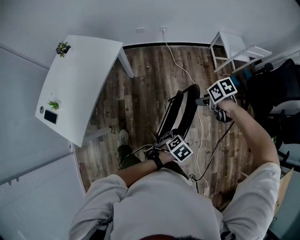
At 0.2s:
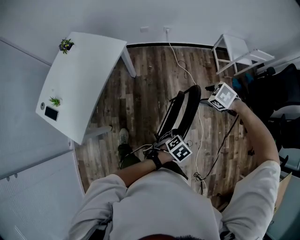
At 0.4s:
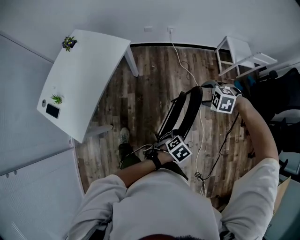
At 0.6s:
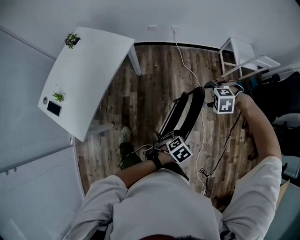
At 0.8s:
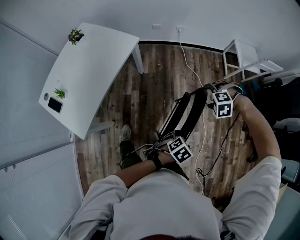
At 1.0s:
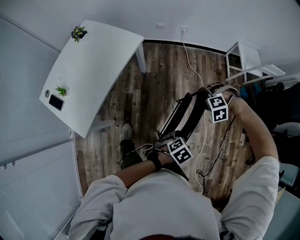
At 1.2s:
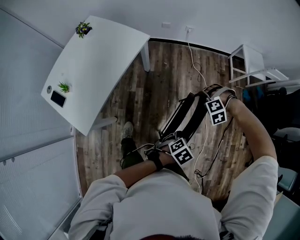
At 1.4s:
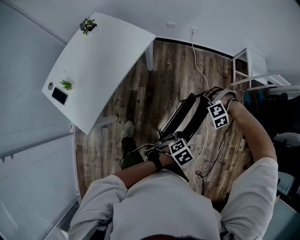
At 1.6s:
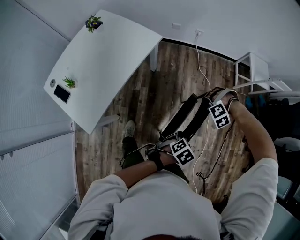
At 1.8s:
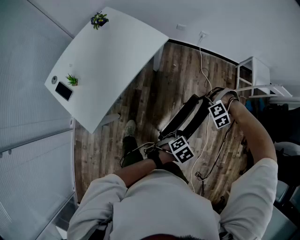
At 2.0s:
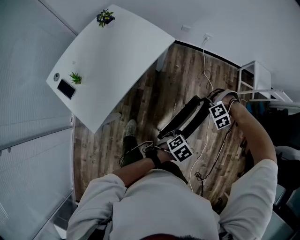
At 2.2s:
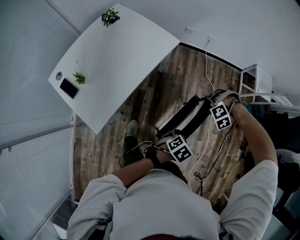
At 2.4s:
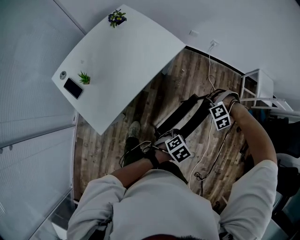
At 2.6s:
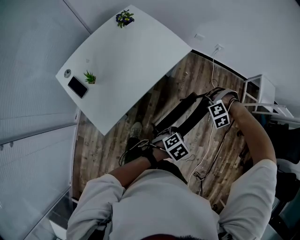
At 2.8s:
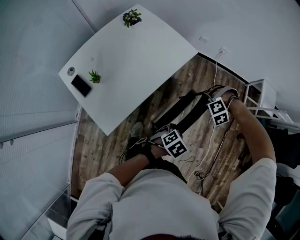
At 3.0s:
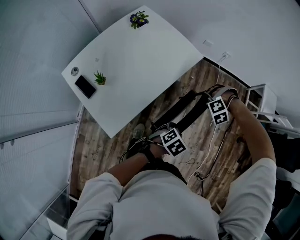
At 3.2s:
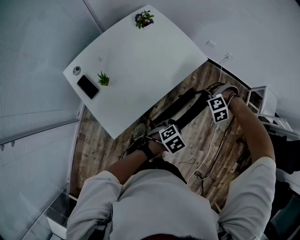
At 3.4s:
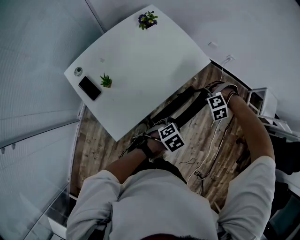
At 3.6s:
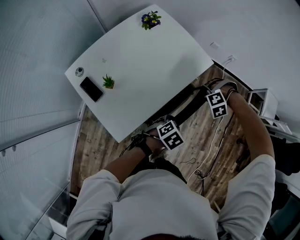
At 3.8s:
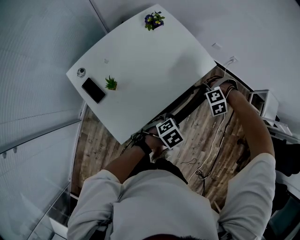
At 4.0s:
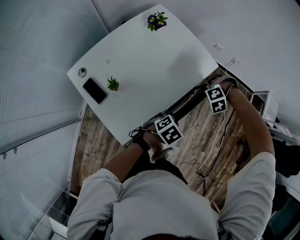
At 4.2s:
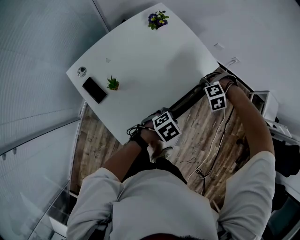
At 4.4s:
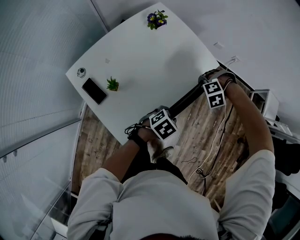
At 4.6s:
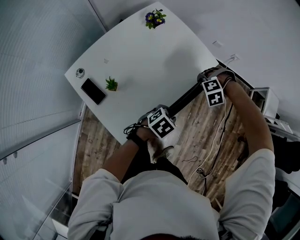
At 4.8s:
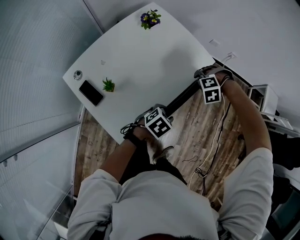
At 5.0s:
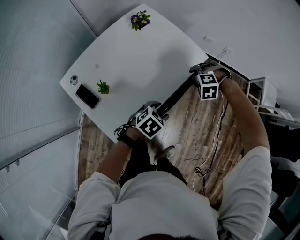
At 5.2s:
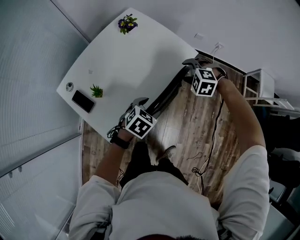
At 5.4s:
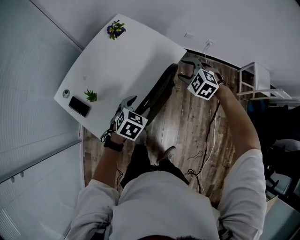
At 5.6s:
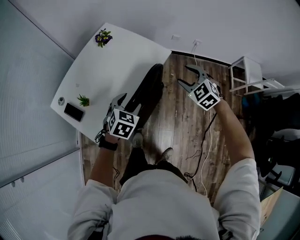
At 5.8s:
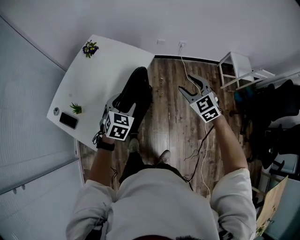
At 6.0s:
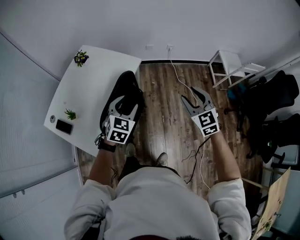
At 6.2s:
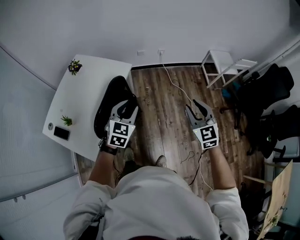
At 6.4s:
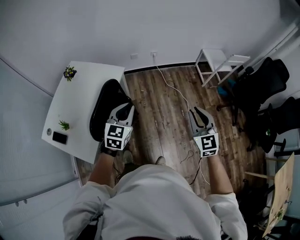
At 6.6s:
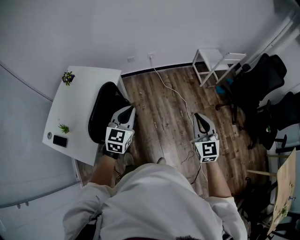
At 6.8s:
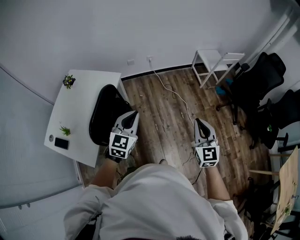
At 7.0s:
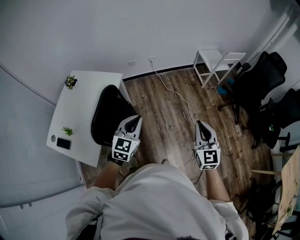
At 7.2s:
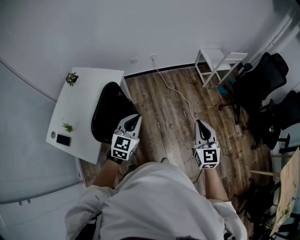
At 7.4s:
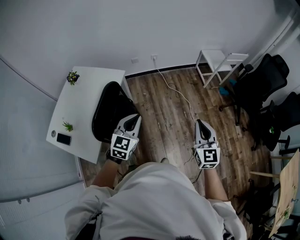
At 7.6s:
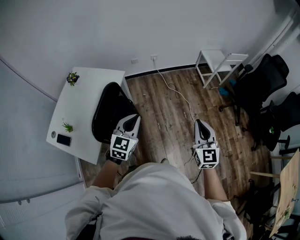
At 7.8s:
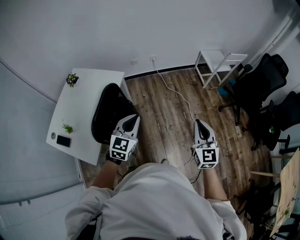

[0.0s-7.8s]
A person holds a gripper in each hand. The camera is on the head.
0.0s to 1.6s: The left gripper shifts by some 15 cm. The right gripper moves roughly 15 cm, twists approximately 120 degrees counterclockwise, seen from behind, and closes its fingers.
1.6s to 3.2s: The right gripper changes place by about 30 cm, while the left gripper shifts by roughly 30 cm.
3.2s to 4.6s: The left gripper changes place by about 15 cm, while the right gripper shifts by approximately 15 cm.
4.6s to 6.2s: The left gripper goes approximately 20 cm upward, and tilts its fingers approximately 30 degrees upward. Meanwhile the right gripper ends up about 50 cm from where it was, and tips its fingers upward by about 70 degrees.
6.2s to 7.8s: Both grippers travel together to the right and backward, roughly 15 cm. The right gripper turns by some 20 degrees.

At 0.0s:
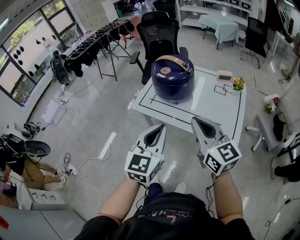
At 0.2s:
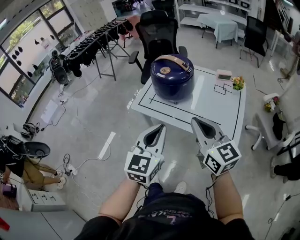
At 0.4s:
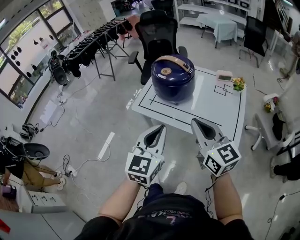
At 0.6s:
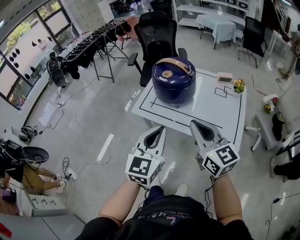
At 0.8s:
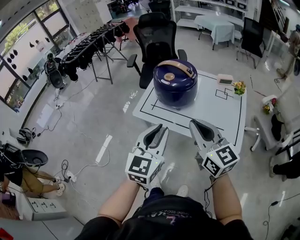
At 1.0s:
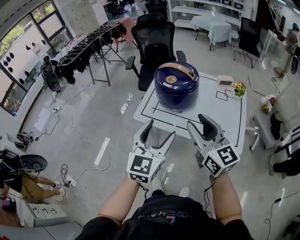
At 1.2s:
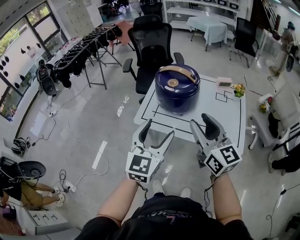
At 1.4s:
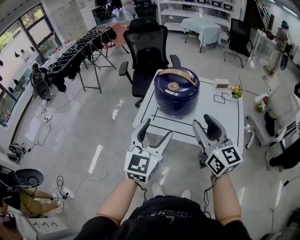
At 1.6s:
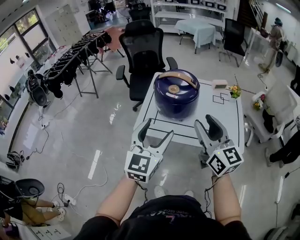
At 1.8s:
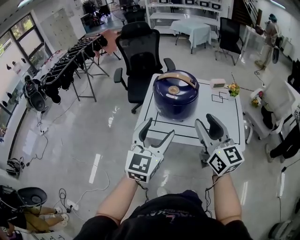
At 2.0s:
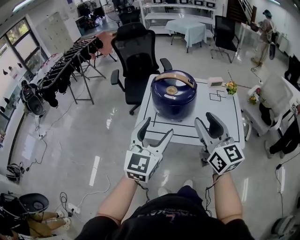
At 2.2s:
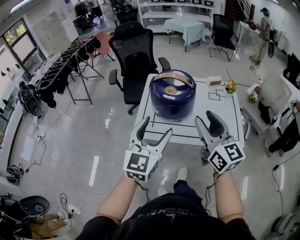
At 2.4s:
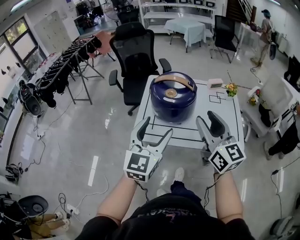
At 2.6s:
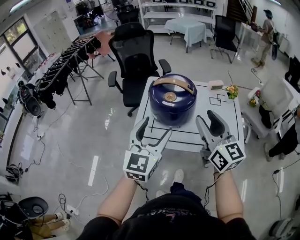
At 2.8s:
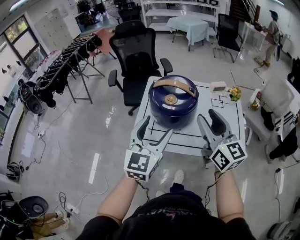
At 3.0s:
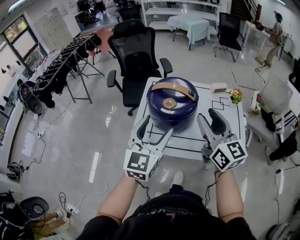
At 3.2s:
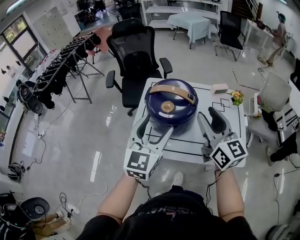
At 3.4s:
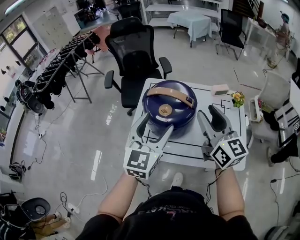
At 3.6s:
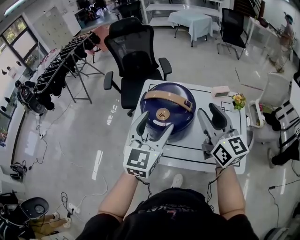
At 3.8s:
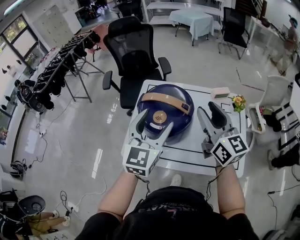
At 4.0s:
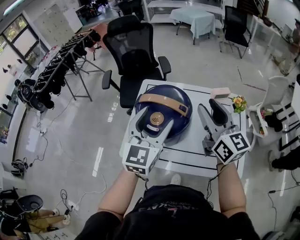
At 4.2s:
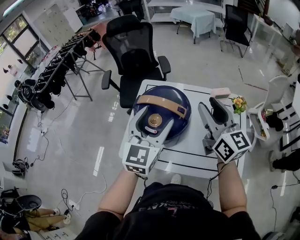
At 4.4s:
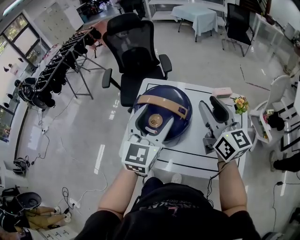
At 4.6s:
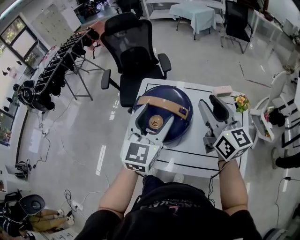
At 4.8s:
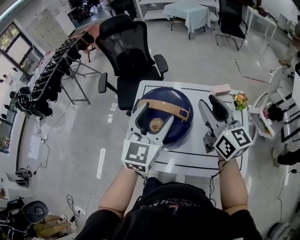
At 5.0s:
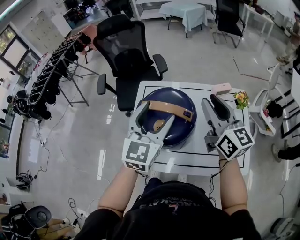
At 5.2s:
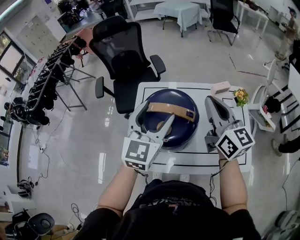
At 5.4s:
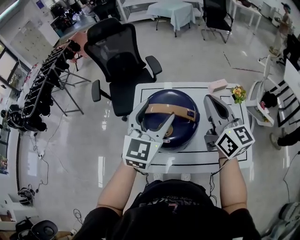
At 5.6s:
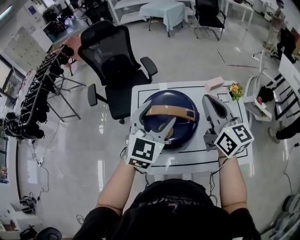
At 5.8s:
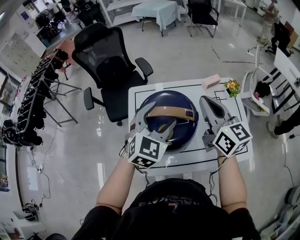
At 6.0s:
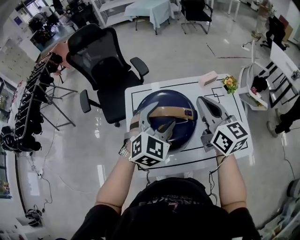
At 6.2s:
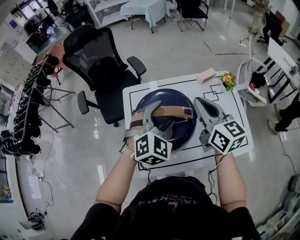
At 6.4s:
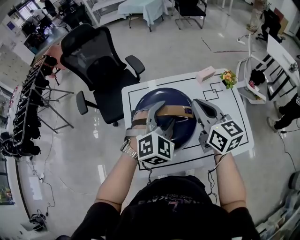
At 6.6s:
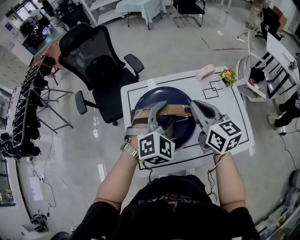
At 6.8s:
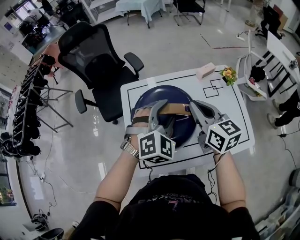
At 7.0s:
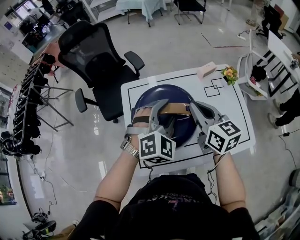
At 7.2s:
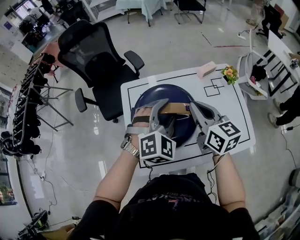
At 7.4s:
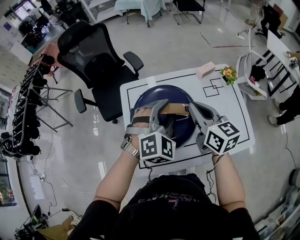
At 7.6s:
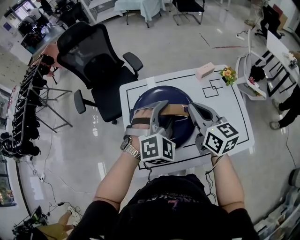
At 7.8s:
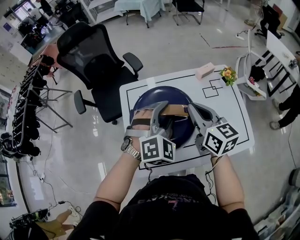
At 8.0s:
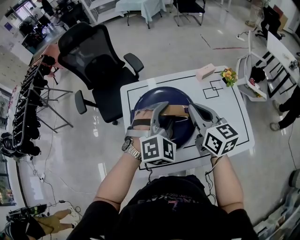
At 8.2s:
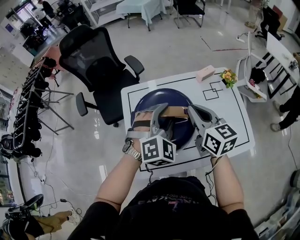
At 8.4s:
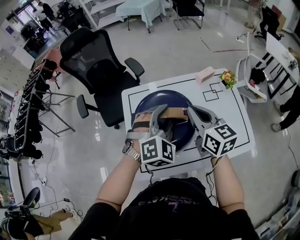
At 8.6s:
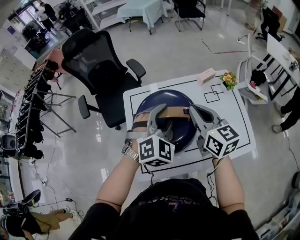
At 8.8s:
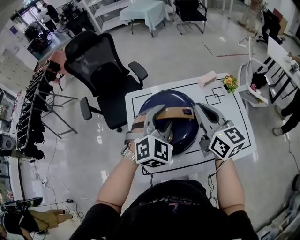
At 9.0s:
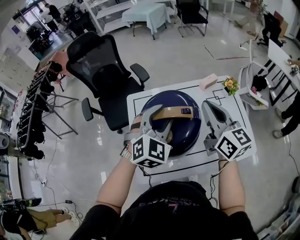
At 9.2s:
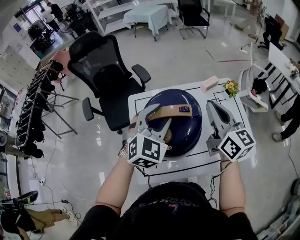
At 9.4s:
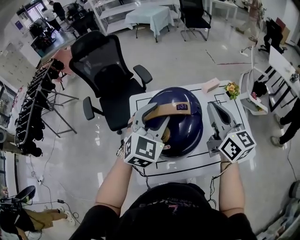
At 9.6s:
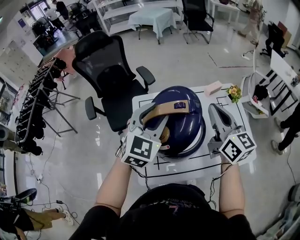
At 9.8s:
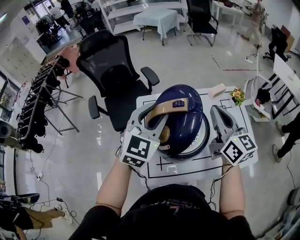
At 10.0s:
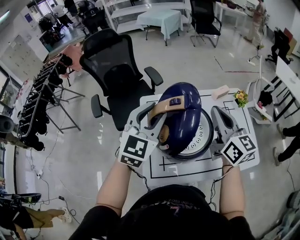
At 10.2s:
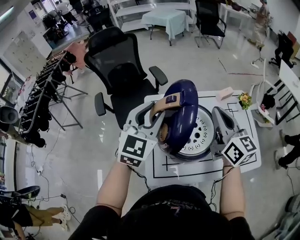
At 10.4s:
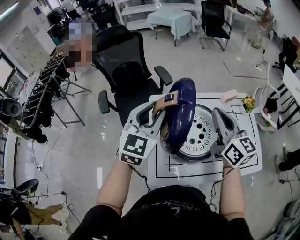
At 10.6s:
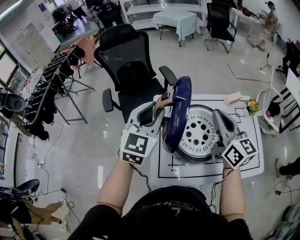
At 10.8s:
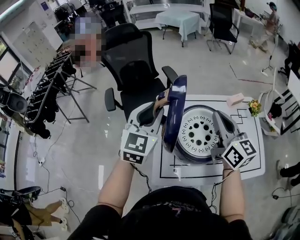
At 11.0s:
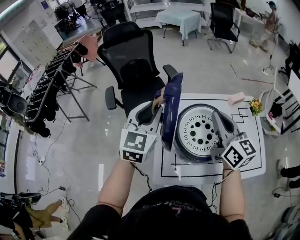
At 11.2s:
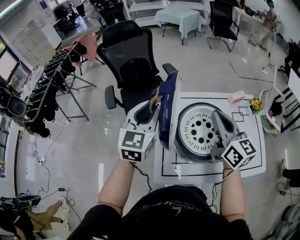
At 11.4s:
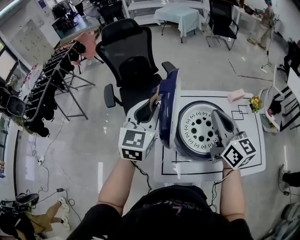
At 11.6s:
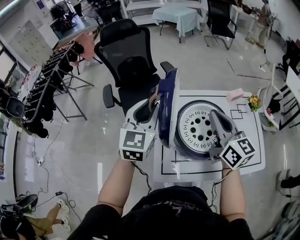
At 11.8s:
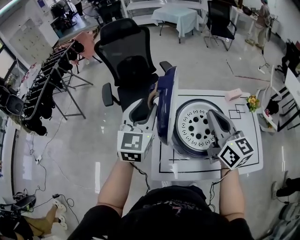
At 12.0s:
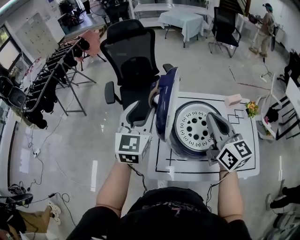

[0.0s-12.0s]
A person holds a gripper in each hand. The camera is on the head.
0.0s to 1.6s: The two grippers go about 15 cm forward and to the left. The right gripper opens its fingers. The left gripper opens up.
1.6s to 3.0s: The grippers both shift forward by roughly 15 cm.
3.0s to 4.4s: The grippers both shift forward and to the right by some 15 cm.
4.4s to 6.0s: The left gripper shifts approximately 10 cm downward and forward, and changes its angle by about 40 degrees; the right gripper ends up roughly 5 cm from where it was, and closes.
6.0s to 7.6s: The left gripper rotates some 20 degrees, and closes up. The right gripper goes roughly 5 cm downward.
7.6s to 9.0s: The right gripper travels upward by some 5 cm. The left gripper moves about 5 cm.
9.0s to 10.4s: The left gripper shifts about 15 cm to the left, and turns by some 30 degrees. Meanwhile the right gripper moves to the left, roughly 10 cm.
10.4s to 12.0s: The left gripper heads to the left, covering approximately 10 cm. The right gripper goes about 5 cm to the left.

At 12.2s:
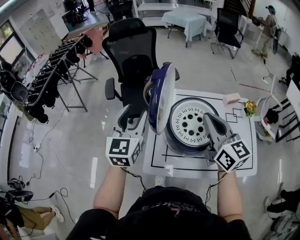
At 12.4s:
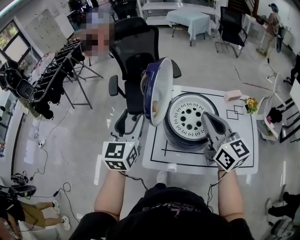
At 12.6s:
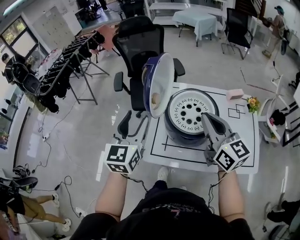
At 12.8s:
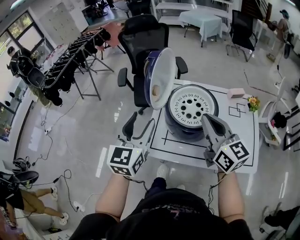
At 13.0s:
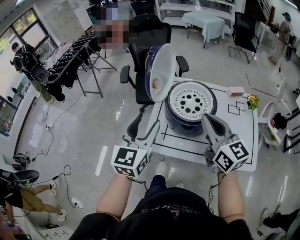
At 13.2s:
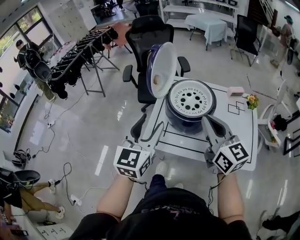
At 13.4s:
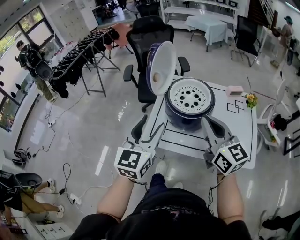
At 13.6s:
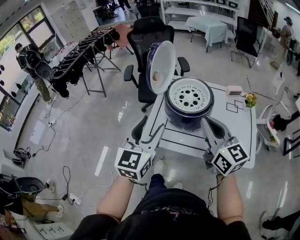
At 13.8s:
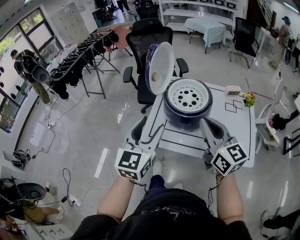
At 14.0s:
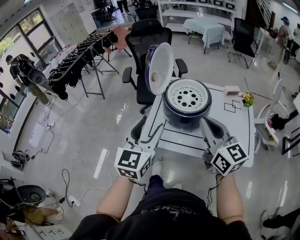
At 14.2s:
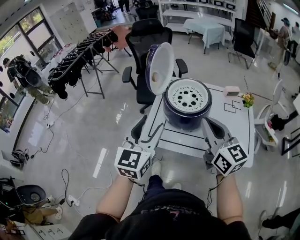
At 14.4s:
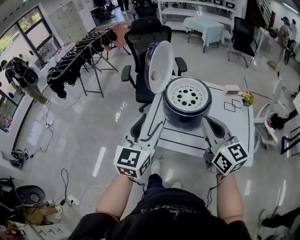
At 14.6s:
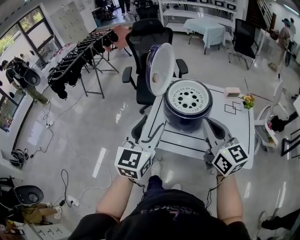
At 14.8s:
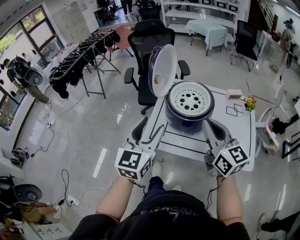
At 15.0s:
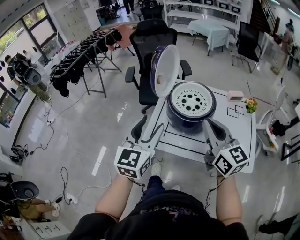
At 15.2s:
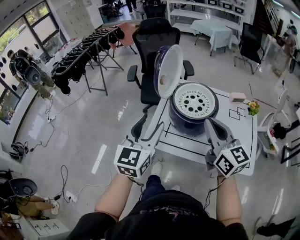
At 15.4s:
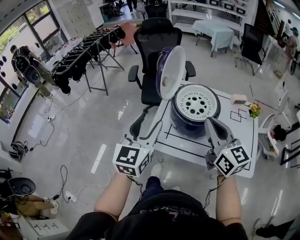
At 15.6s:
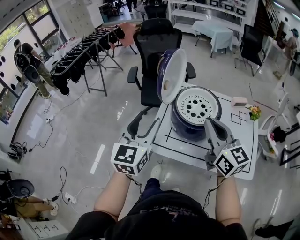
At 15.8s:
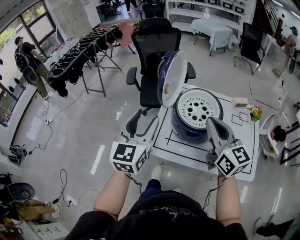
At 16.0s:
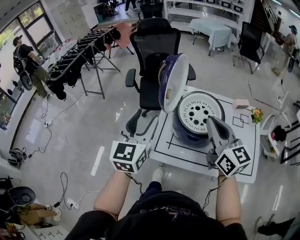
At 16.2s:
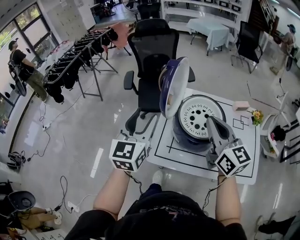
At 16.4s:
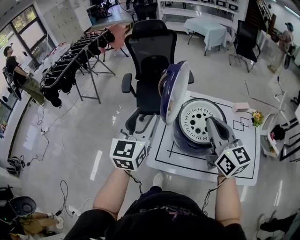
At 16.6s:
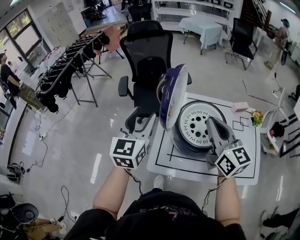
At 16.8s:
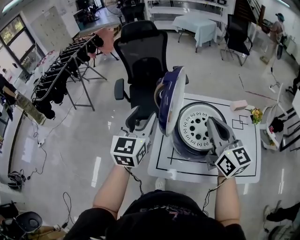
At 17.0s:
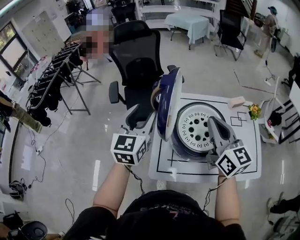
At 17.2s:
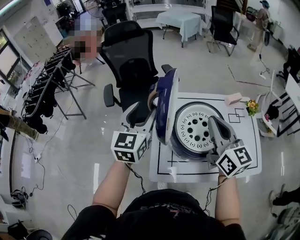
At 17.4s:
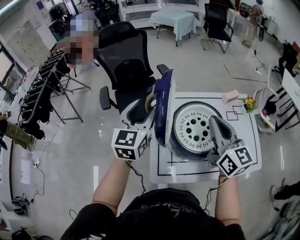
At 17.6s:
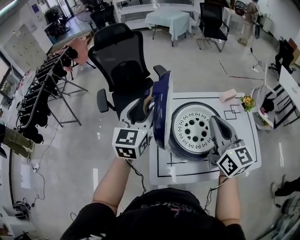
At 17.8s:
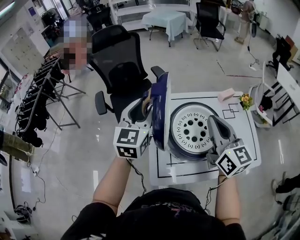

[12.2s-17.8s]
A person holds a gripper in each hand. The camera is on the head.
12.2s to 13.6s: Both grippers travel together backward, about 25 cm.
13.6s to 15.0s: The grippers make only small movements.
15.0s to 16.4s: Both grippers travel together forward, roughly 15 cm.
16.4s to 17.8s: The left gripper shifts some 15 cm forward; the right gripper shifts about 5 cm forward.
